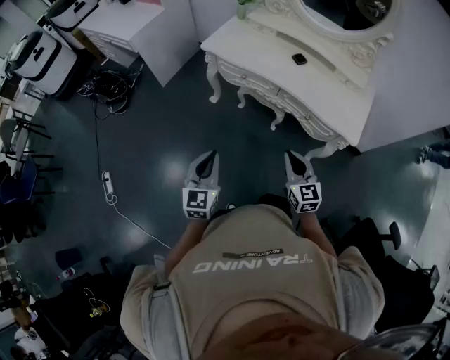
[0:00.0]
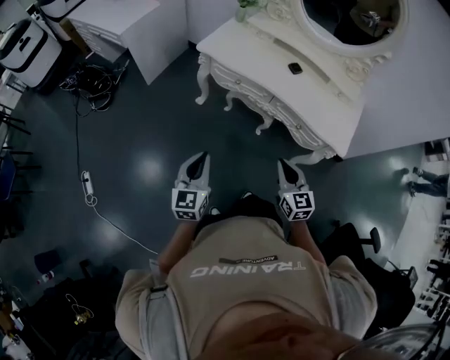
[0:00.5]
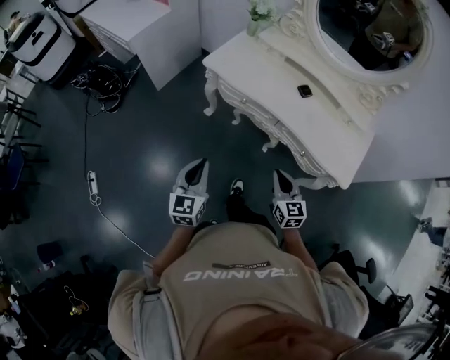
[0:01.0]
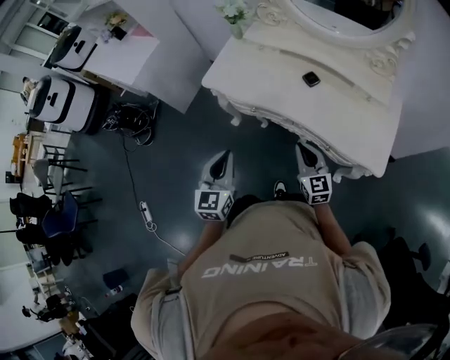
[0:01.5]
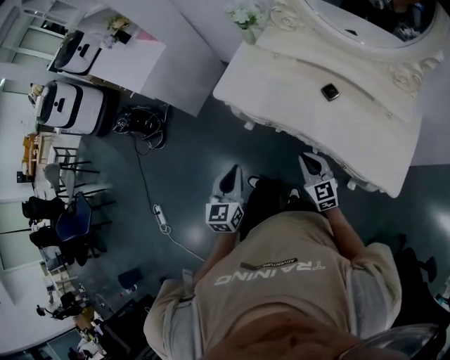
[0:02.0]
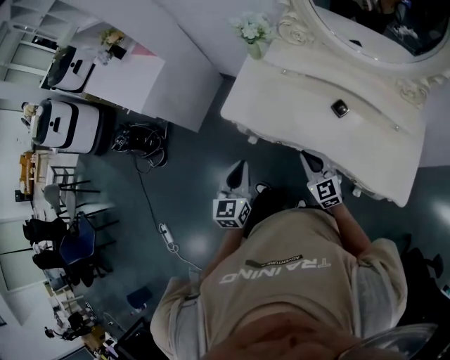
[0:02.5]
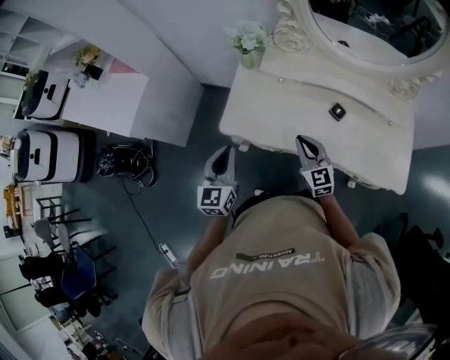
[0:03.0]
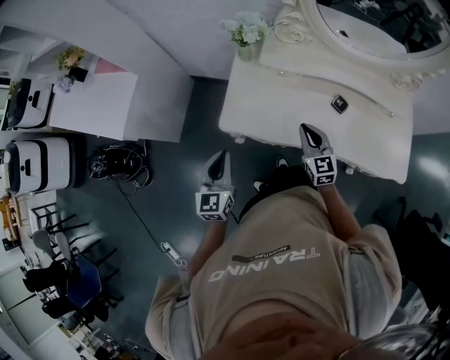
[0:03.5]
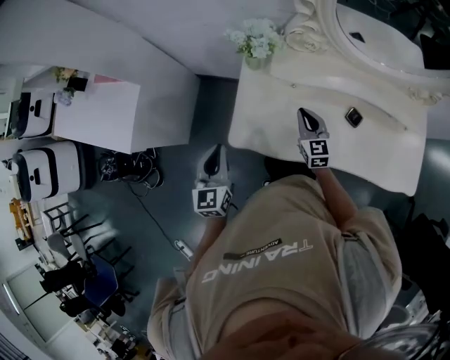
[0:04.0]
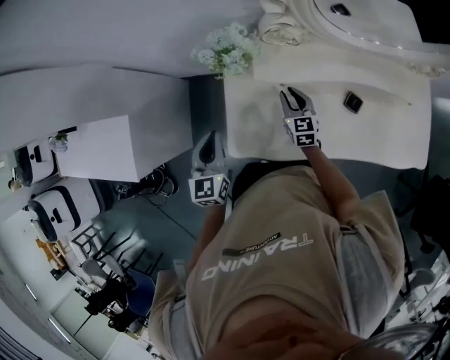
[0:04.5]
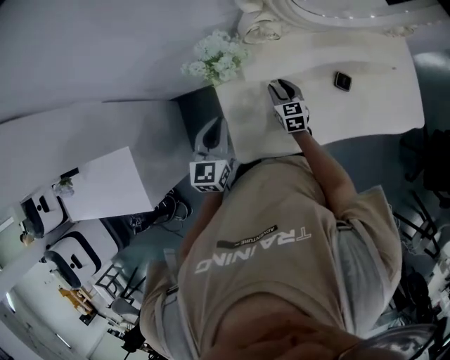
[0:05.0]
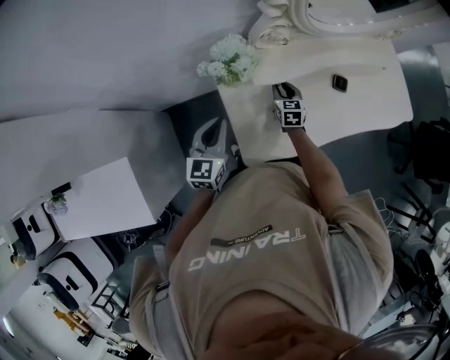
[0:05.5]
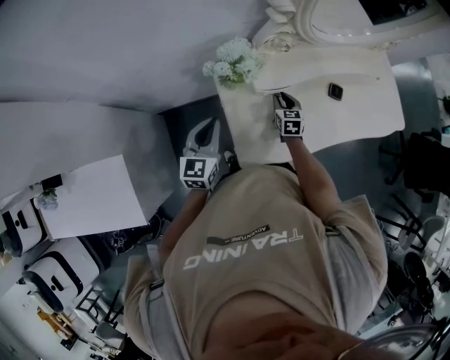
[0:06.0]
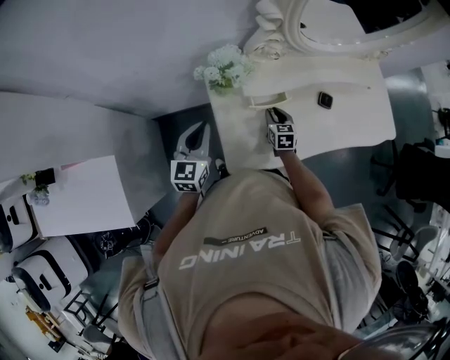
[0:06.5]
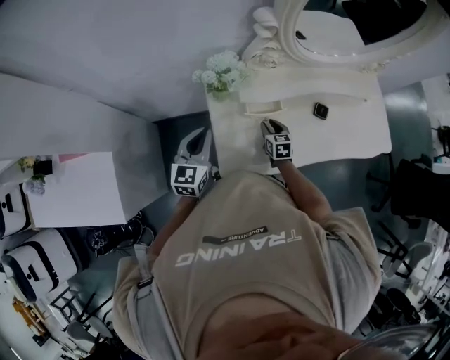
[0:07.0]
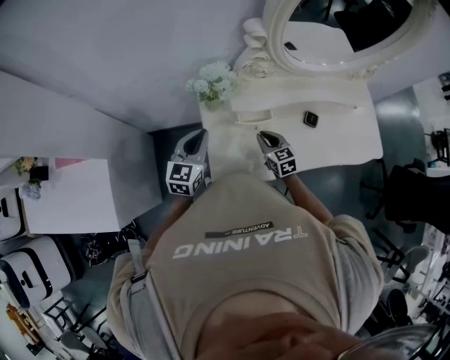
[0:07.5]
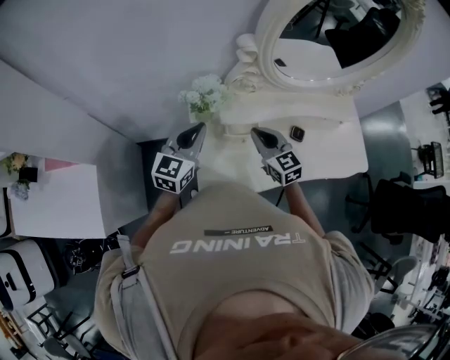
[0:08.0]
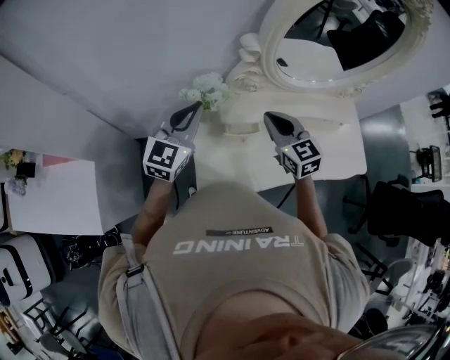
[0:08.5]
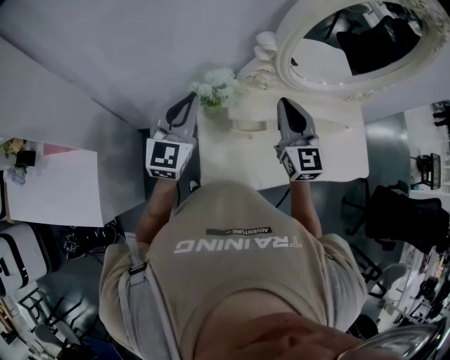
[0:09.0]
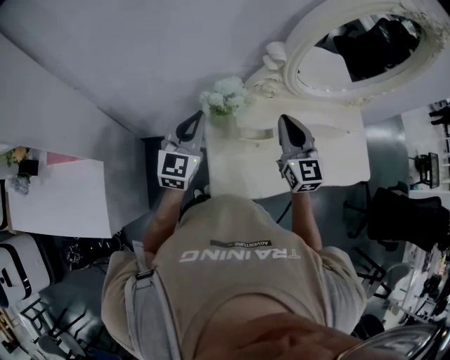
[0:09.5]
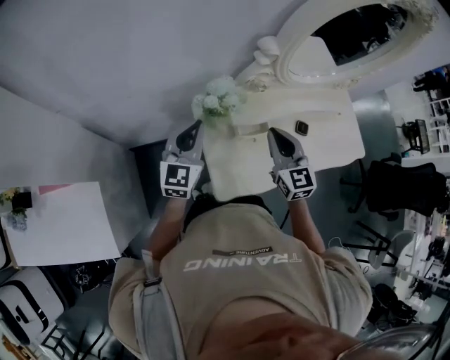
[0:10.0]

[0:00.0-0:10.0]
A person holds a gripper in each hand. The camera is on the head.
0:00.0 to 0:02.0: The two grippers go some 35 cm forward.
0:02.0 to 0:04.0: The two grippers travel together, forward, approximately 40 cm. The right gripper rotates approximately 30 degrees.
0:04.0 to 0:06.0: The right gripper ends up approximately 15 cm from where it was, turns by about 40 degrees, and opens its fingers, while the left gripper ends up roughly 20 cm from where it was, and swivels some 40 degrees.
0:06.0 to 0:08.0: The right gripper shifts roughly 25 cm upward, changes its angle by some 40 degrees, and closes its fingers, while the left gripper moves upward and to the right, about 15 cm.
0:08.0 to 0:10.0: The right gripper moves about 15 cm upward and comes back, and changes its angle by roughly 20 degrees, while the left gripper moves to the left, some 10 cm, and reaches some 10 cm upward, then returns.

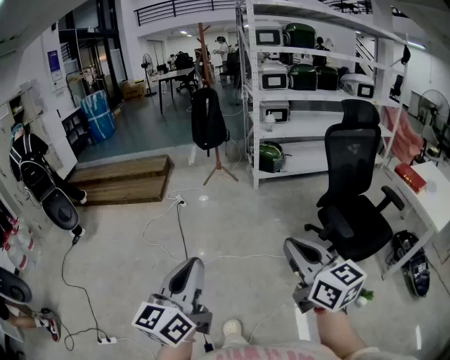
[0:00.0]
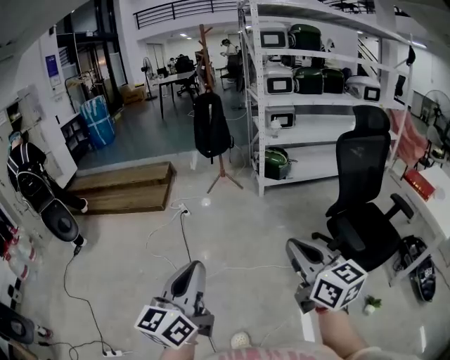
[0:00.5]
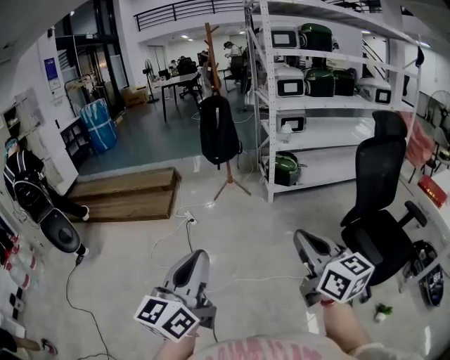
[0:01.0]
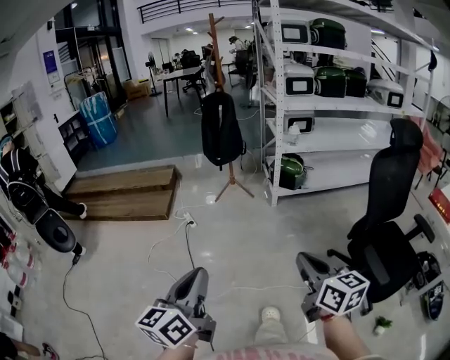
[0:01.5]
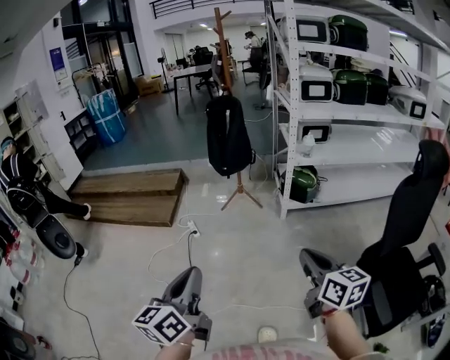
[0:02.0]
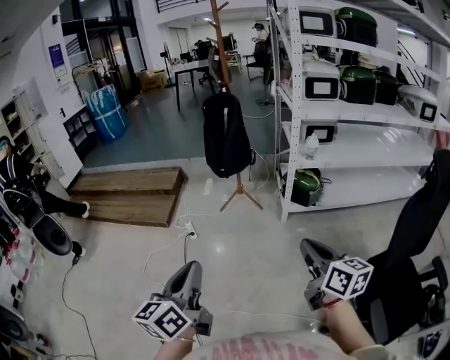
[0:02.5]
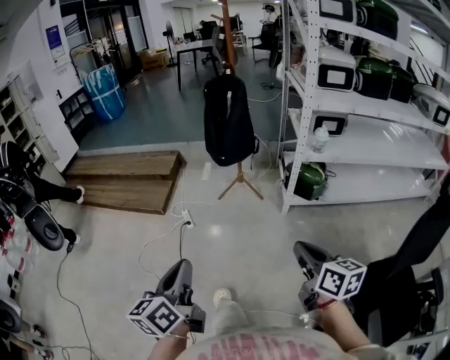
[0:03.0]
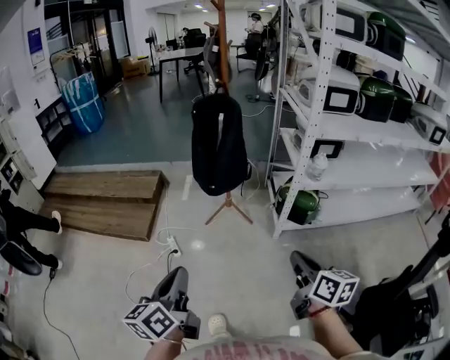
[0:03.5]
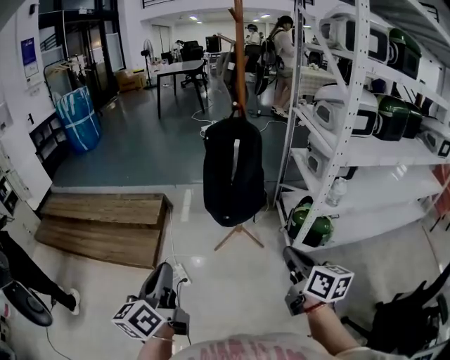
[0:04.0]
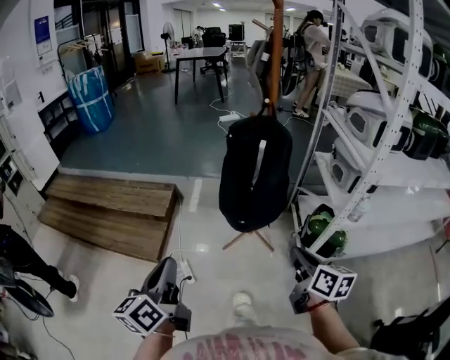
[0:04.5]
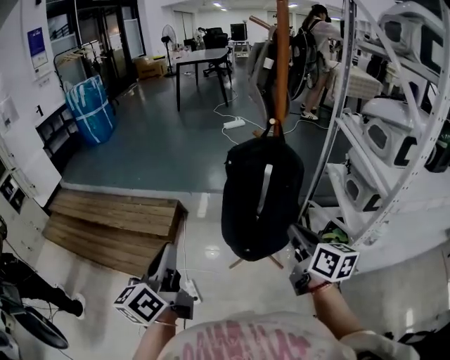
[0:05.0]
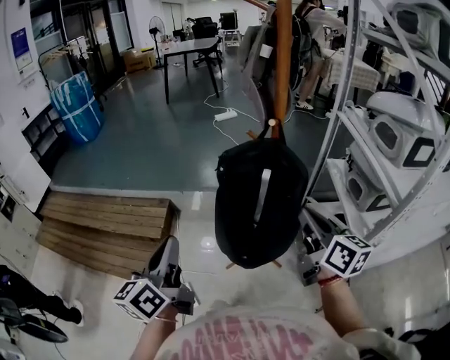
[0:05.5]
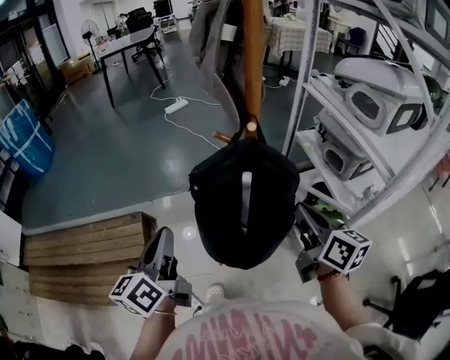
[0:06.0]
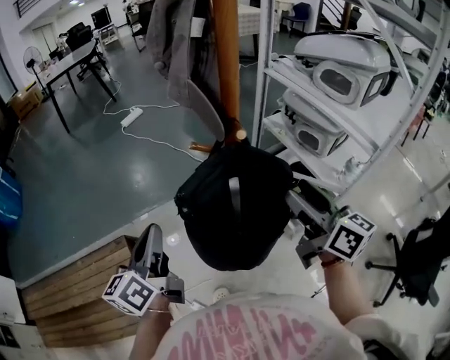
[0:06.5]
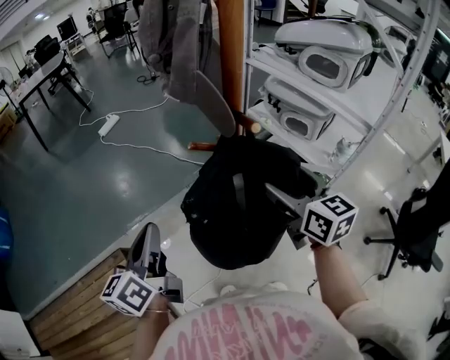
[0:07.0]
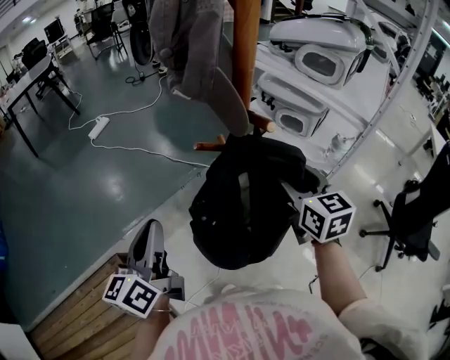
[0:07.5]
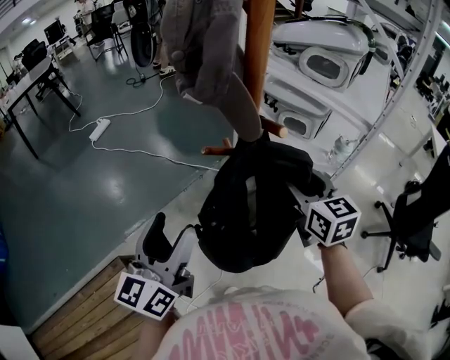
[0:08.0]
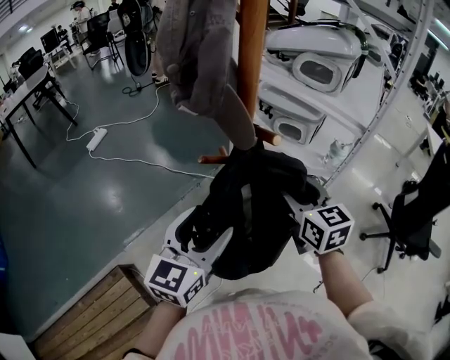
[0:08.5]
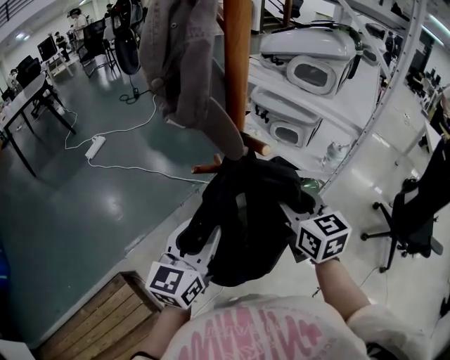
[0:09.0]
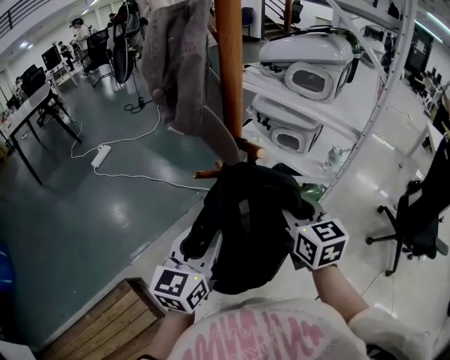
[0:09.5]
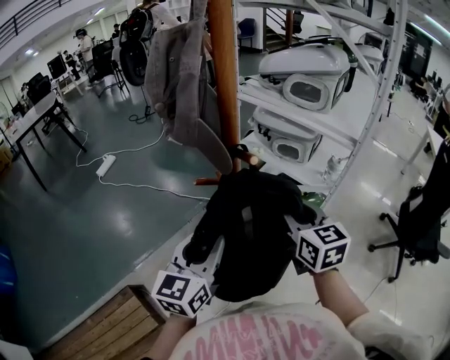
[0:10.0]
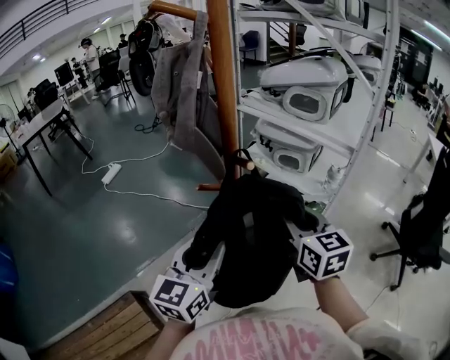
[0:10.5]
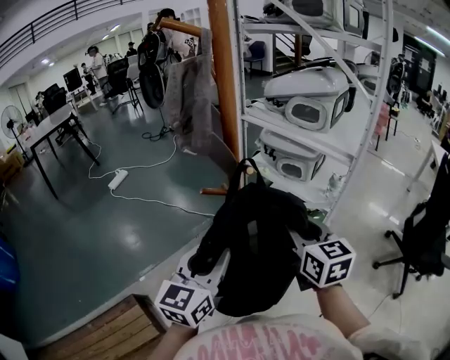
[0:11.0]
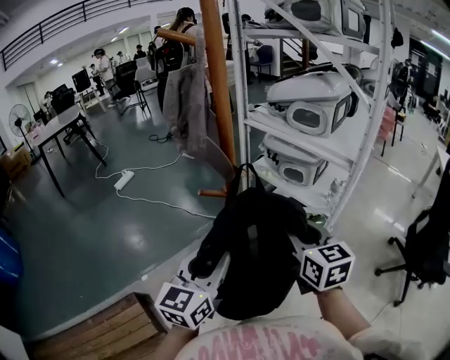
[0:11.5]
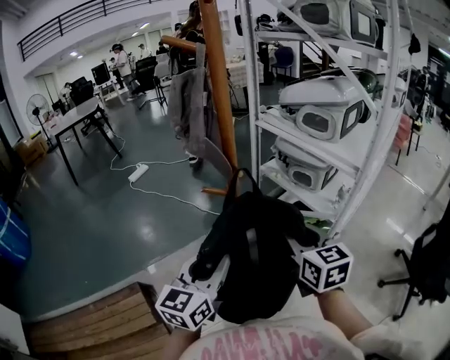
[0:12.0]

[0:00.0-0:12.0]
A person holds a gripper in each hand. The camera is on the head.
0:00.0 to 0:02.0: The pair of grippers is taken forward, about 50 cm.
0:02.0 to 0:04.0: The pair of grippers is taken forward, roughly 50 cm.
0:04.0 to 0:06.0: The two grippers travel together, forward, some 50 cm.
0:06.0 to 0:08.0: The left gripper ends up roughly 15 cm from where it was, rotates about 40 degrees, and opens its fingers. The right gripper changes place by about 5 cm, swivels about 40 degrees, and opens up.
0:08.0 to 0:10.0: The left gripper heads to the right, covering some 10 cm, and closes its fingers.
0:10.0 to 0:12.0: Both grippers move backward, roughly 5 cm.

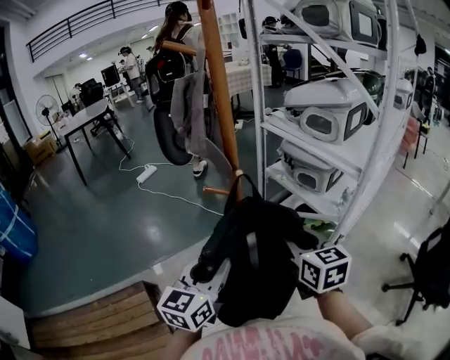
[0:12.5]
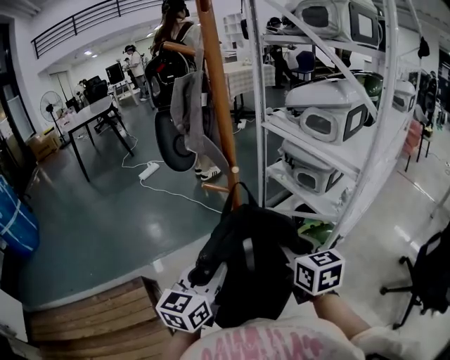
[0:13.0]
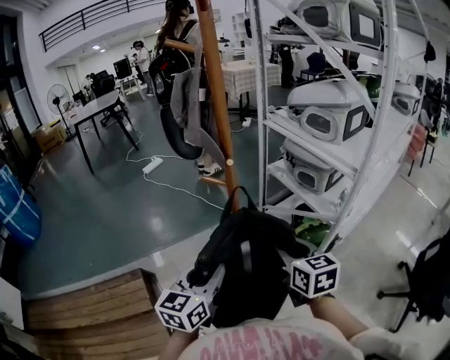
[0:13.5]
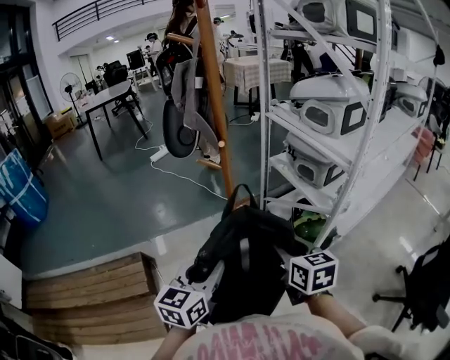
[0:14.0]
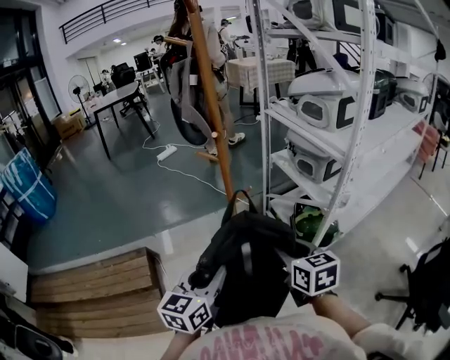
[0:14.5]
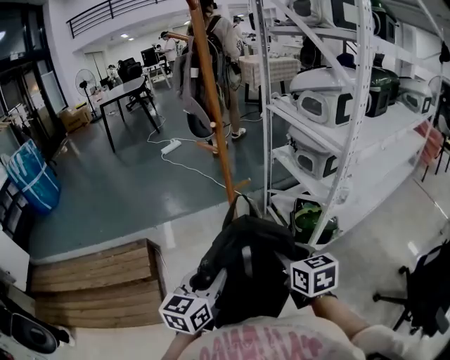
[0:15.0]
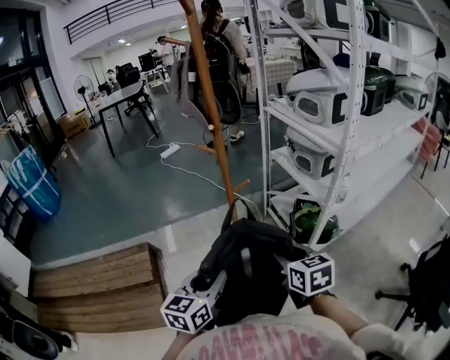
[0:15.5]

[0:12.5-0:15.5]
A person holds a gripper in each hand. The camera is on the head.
0:12.5 to 0:14.0: The right gripper goes roughly 10 cm backward and downward. Meanwhile the left gripper goes roughly 10 cm backward and to the right.
0:14.0 to 0:15.5: The two grippers go about 10 cm backward.

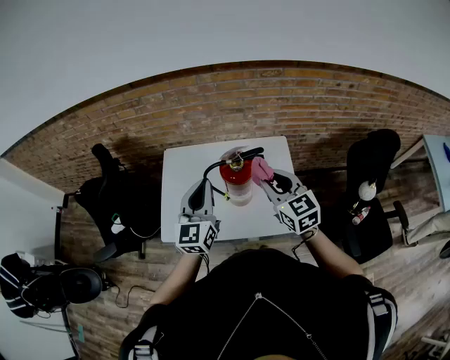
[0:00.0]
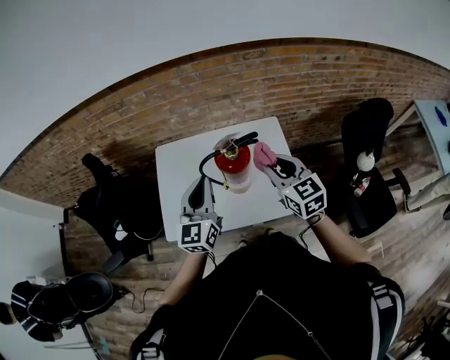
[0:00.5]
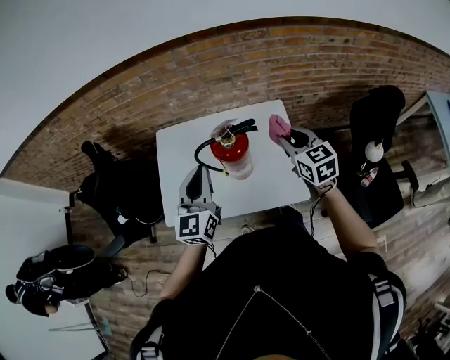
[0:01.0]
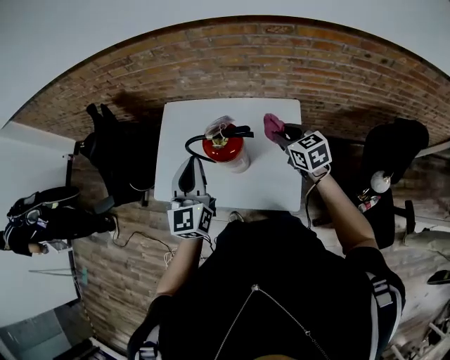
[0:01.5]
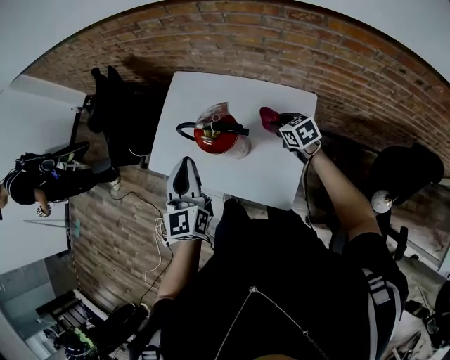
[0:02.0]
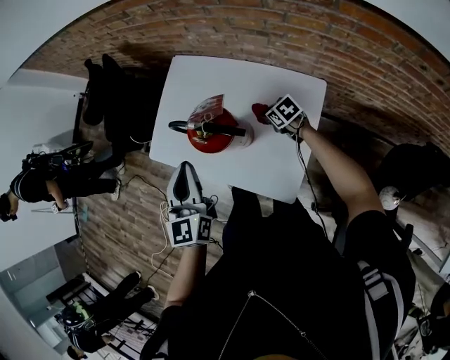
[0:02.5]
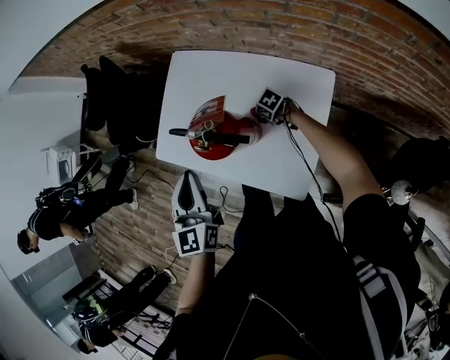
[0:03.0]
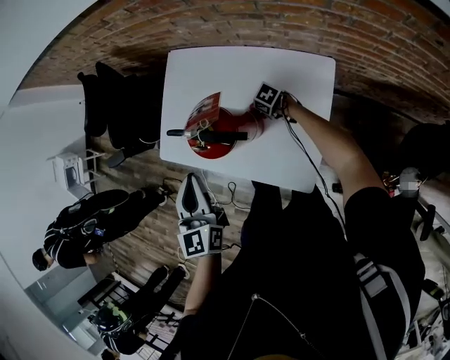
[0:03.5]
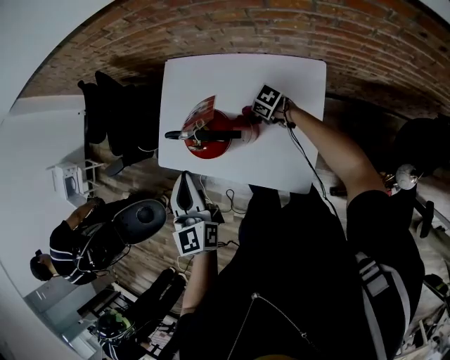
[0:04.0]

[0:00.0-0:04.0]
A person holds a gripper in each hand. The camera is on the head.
0:00.0 to 0:02.0: The right gripper shifts approximately 25 cm downward, and changes its angle by about 40 degrees. The left gripper shifts by about 10 cm, and turns by about 30 degrees.
0:02.0 to 0:04.0: The right gripper is displaced downward by some 15 cm, and rotates roughly 30 degrees.
